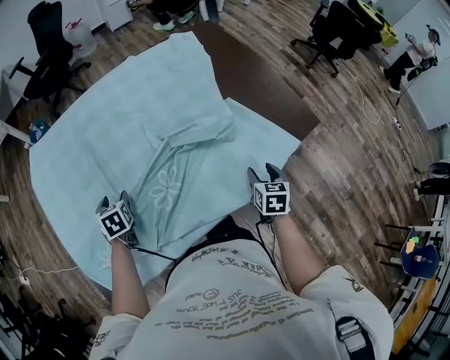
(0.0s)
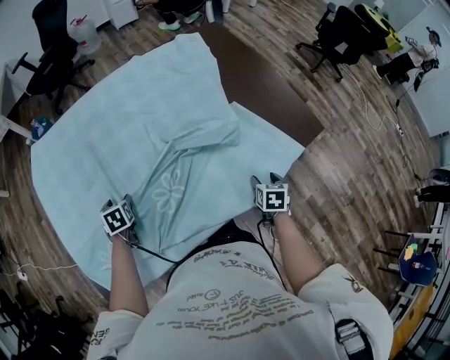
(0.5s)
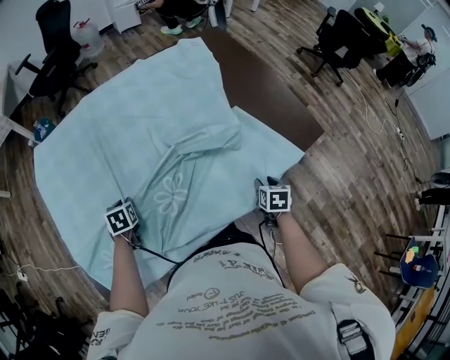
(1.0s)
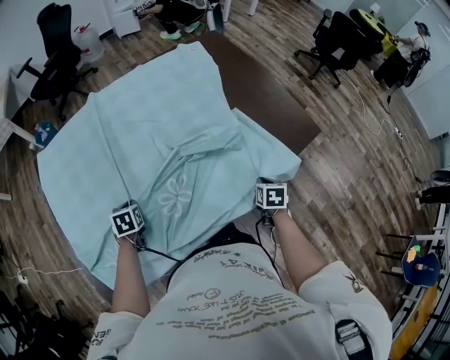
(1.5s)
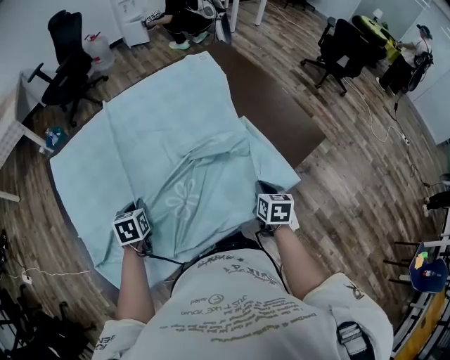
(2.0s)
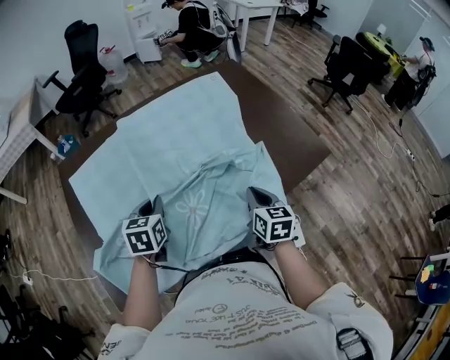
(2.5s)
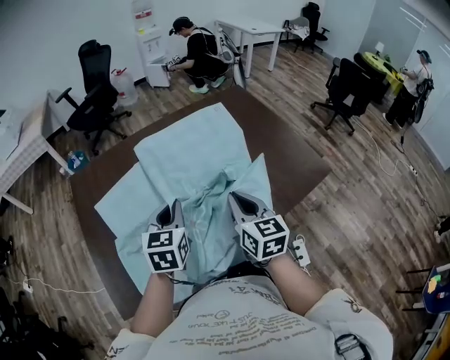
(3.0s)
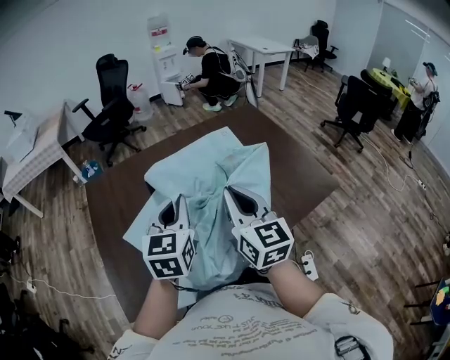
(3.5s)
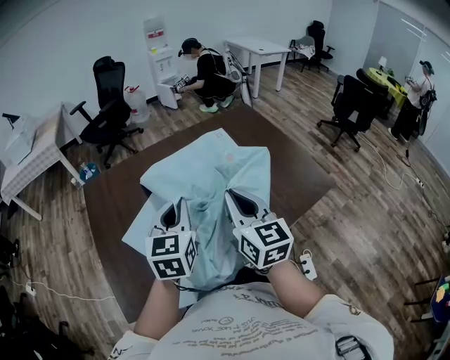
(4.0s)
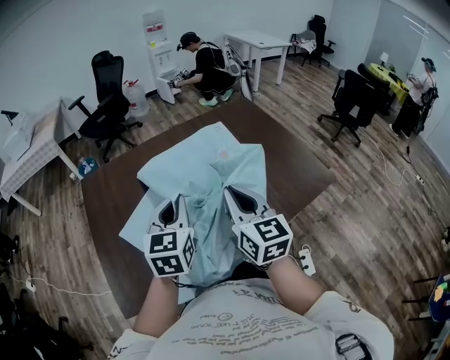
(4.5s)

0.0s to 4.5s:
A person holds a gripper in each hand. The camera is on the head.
0.0s to 2.0s: The left gripper is displaced to the right by about 5 cm, and closes; the right gripper closes its fingers.
2.0s to 4.5s: The right gripper travels upward and to the left by about 35 cm, and tilts its fingers about 40 degrees upward; the left gripper is displaced upward by about 25 cm, and angles its fingers upward, by roughly 40 degrees.

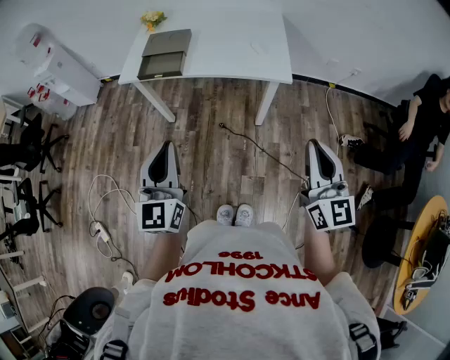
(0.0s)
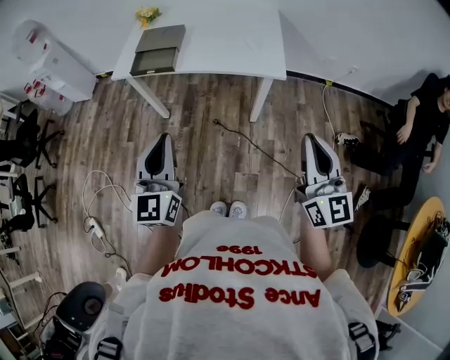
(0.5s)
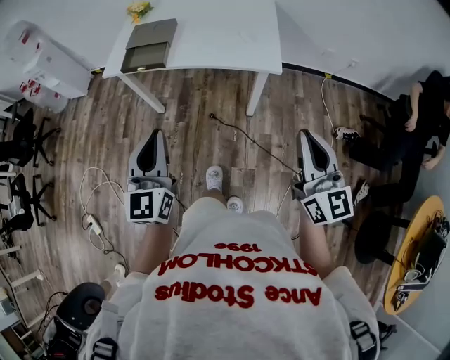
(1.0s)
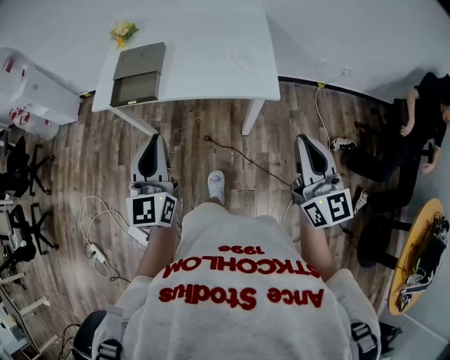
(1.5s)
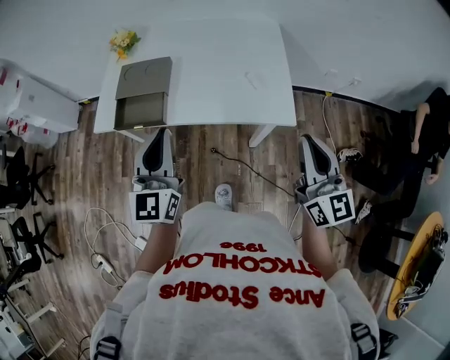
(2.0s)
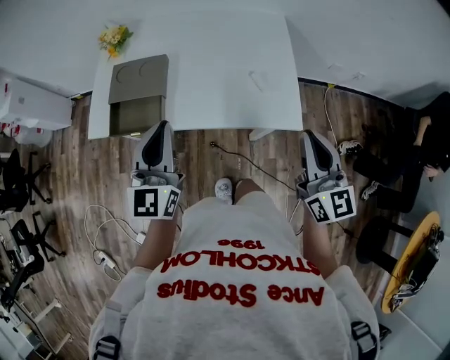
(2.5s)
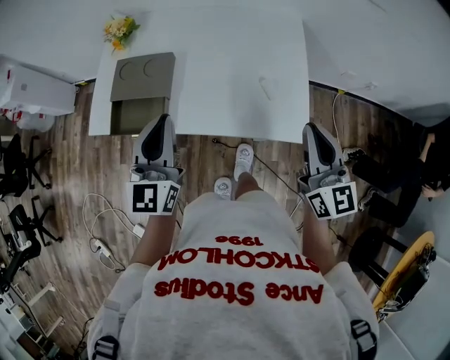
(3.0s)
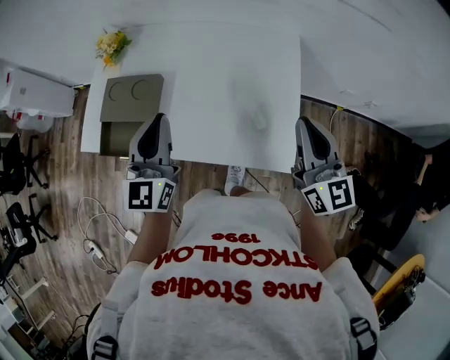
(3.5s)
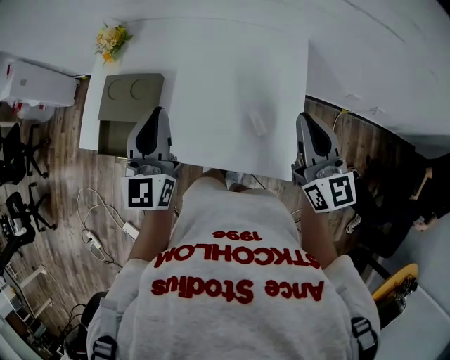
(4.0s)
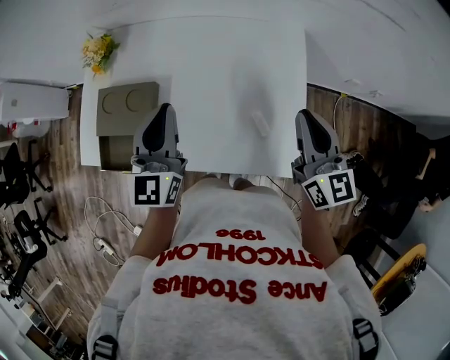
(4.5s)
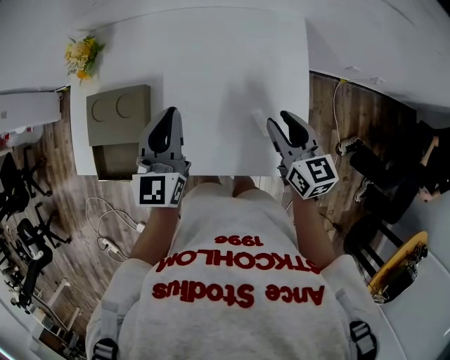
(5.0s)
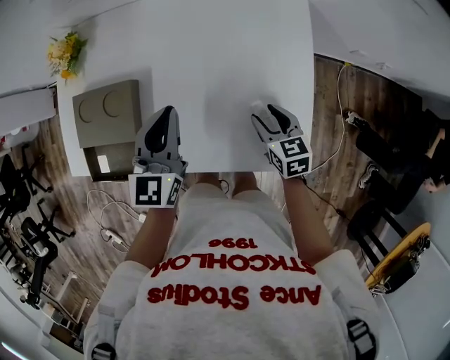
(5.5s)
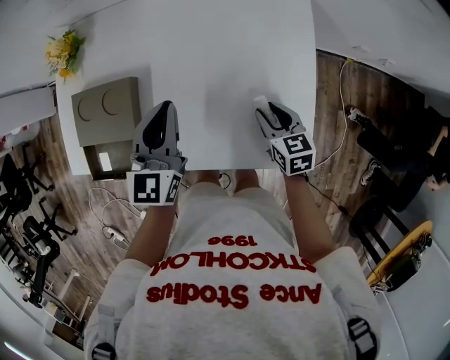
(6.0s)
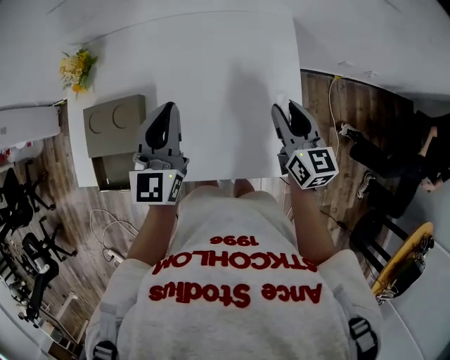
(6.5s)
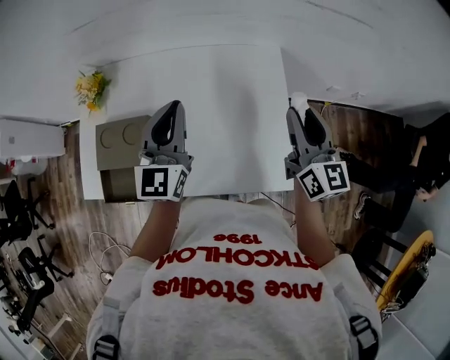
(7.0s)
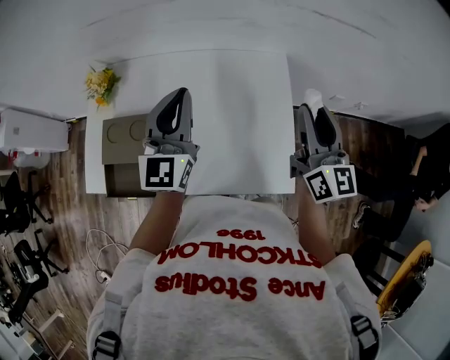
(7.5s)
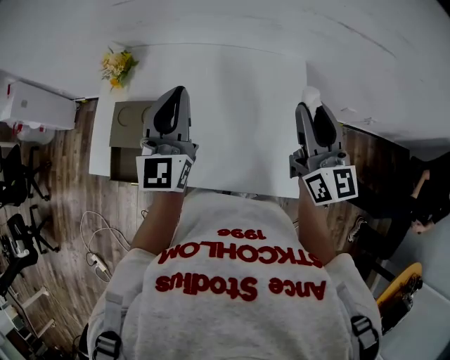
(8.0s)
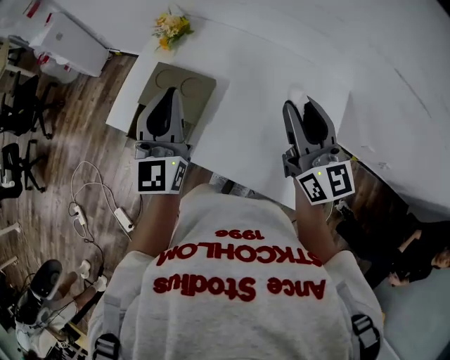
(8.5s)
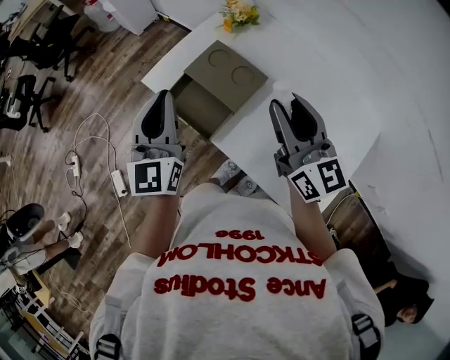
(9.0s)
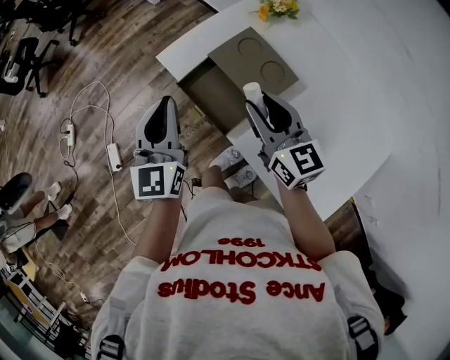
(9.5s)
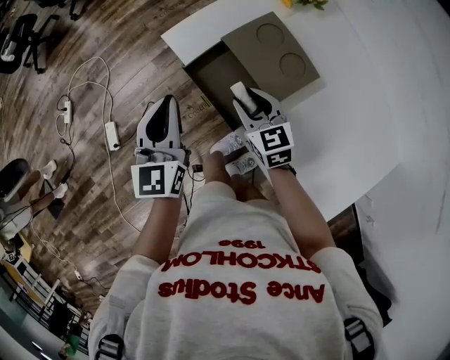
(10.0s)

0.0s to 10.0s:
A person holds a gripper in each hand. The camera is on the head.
0.0s to 2.0s: Both grippers travel together forward, some 25 cm.
2.0s to 4.0s: Both grippers travel together forward, about 25 cm.
4.0s to 6.0s: The left gripper shifts roughly 10 cm downward and forward. The right gripper travels downward by some 25 cm, tilts its fingers some 40 degrees downward, and opens.
6.0s to 8.0s: The right gripper is displaced upward by about 35 cm, and tips its fingers upward by approximately 50 degrees. Meanwhile the left gripper goes approximately 15 cm upward, and turns by some 20 degrees.
8.0s to 10.0s: The right gripper ends up about 50 cm from where it was, and tilts its fingers about 40 degrees downward; the left gripper moves approximately 40 cm, and swivels roughly 60 degrees.

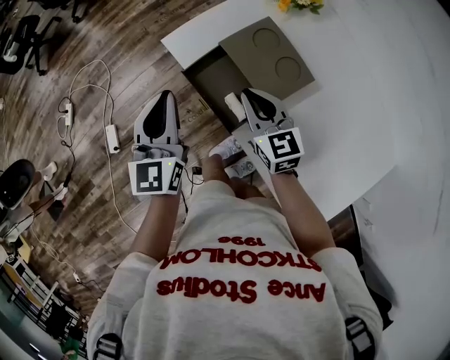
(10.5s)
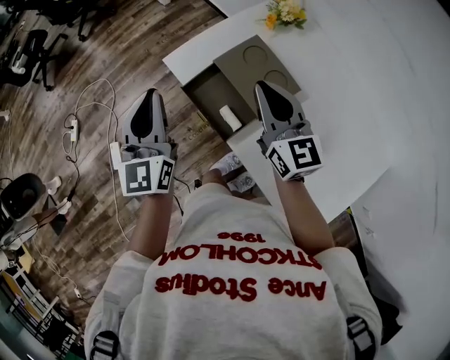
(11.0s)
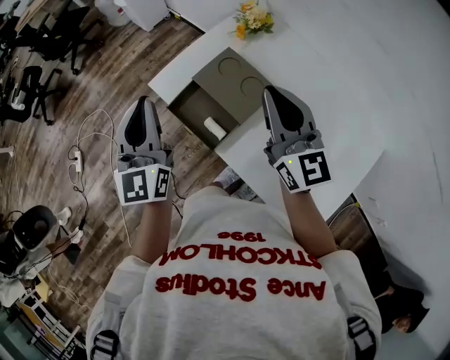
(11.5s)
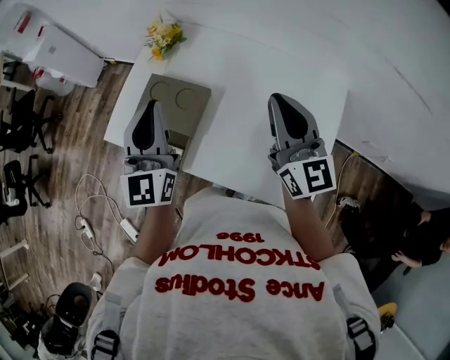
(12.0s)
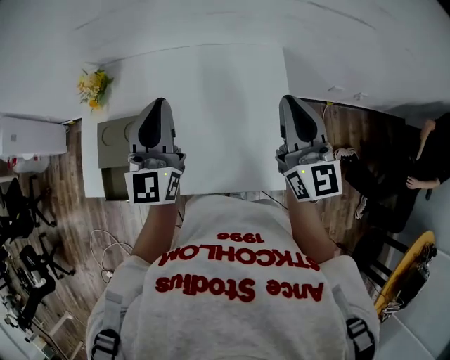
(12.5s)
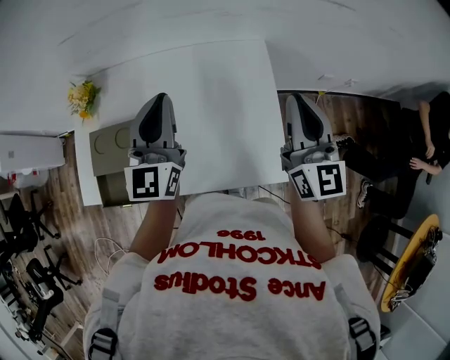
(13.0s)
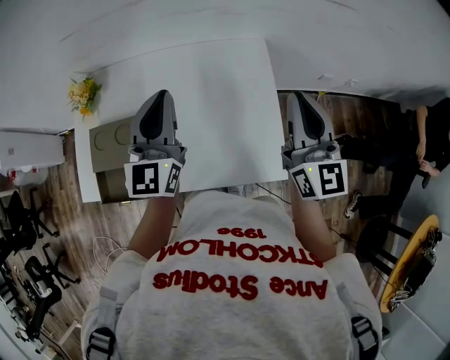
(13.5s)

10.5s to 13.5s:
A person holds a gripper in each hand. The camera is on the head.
10.5s to 12.0s: The left gripper ends up roughly 25 cm from where it was, and swivels approximately 40 degrees. Meanwhile the right gripper shifts by roughly 35 cm, and swivels some 50 degrees.
12.0s to 13.5s: The right gripper changes place by about 25 cm, and rotates roughly 30 degrees. The left gripper shifts by about 25 cm, and turns by approximately 30 degrees.

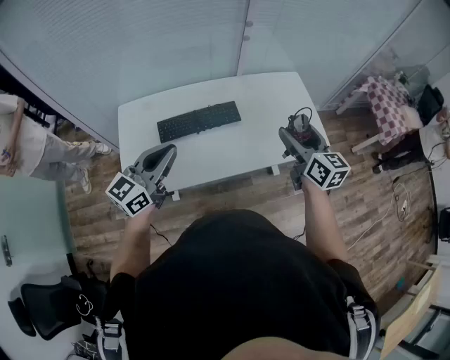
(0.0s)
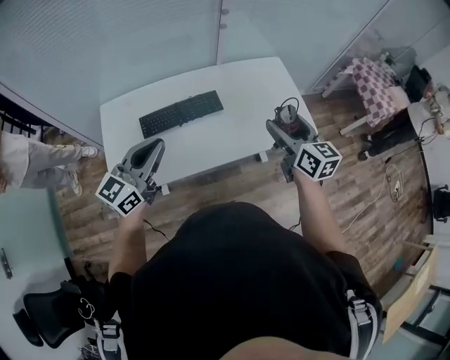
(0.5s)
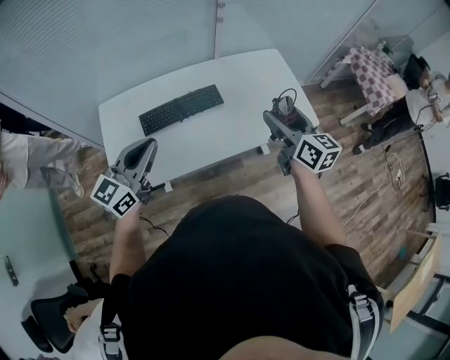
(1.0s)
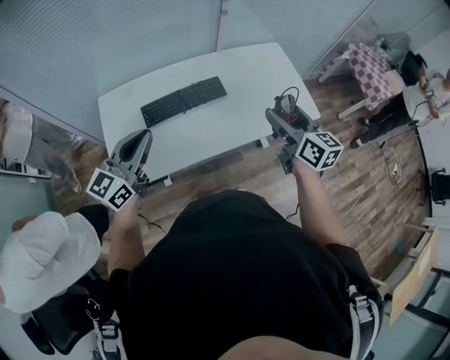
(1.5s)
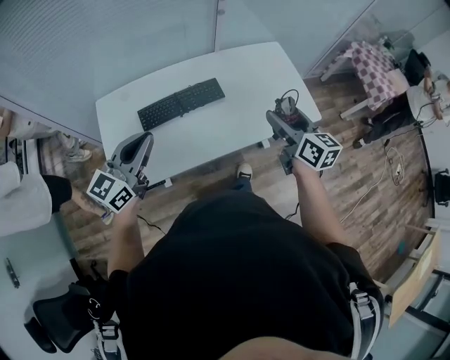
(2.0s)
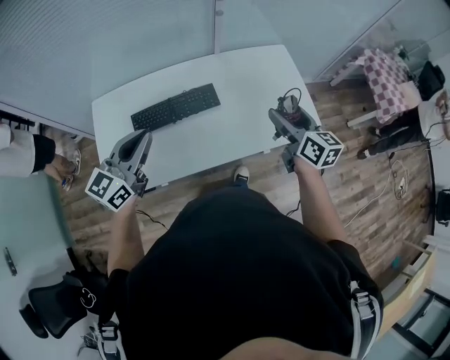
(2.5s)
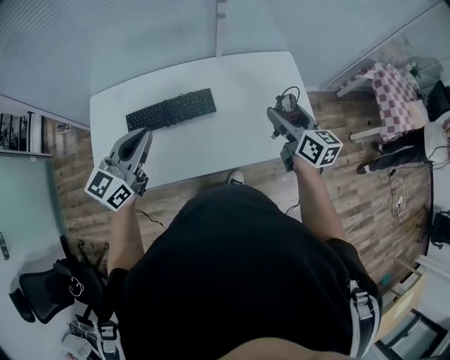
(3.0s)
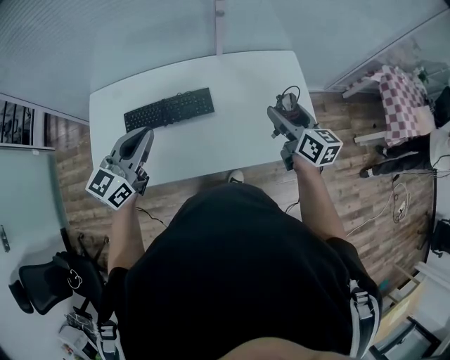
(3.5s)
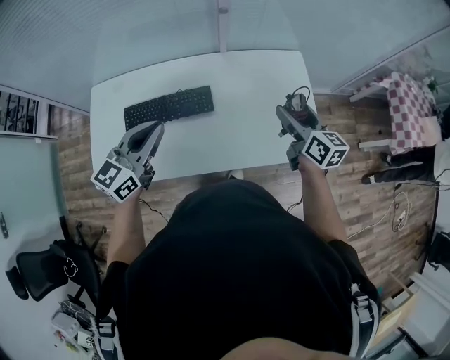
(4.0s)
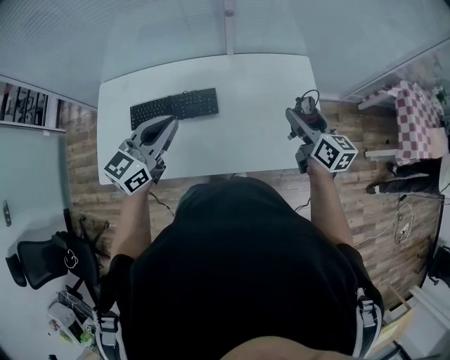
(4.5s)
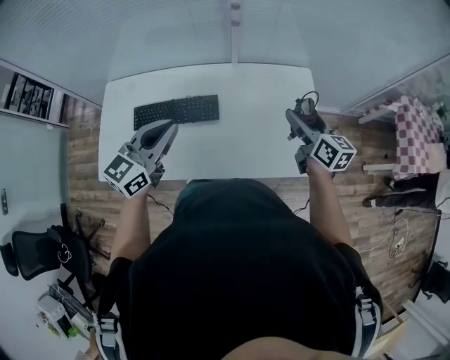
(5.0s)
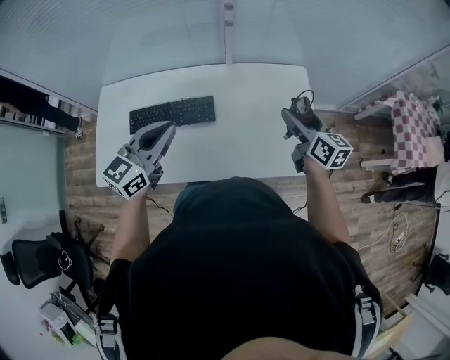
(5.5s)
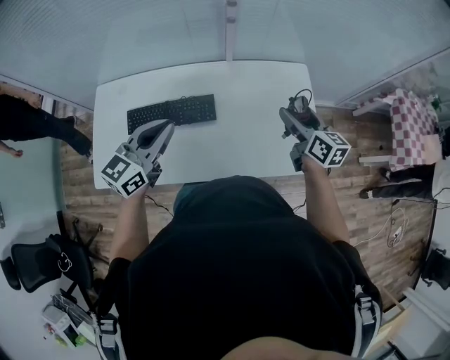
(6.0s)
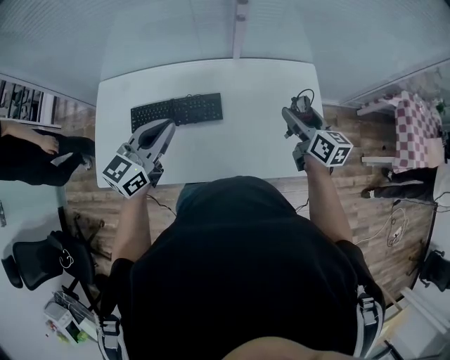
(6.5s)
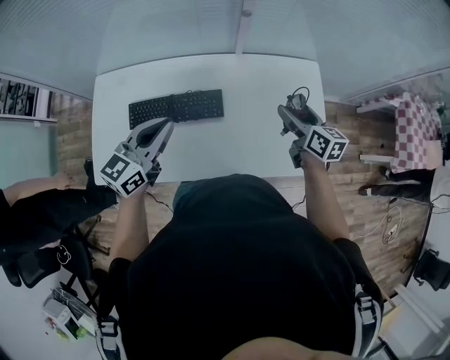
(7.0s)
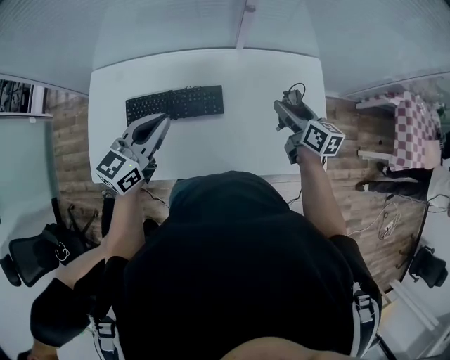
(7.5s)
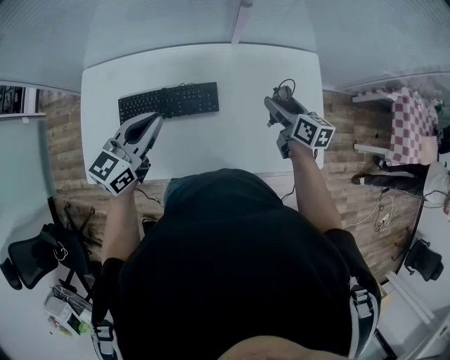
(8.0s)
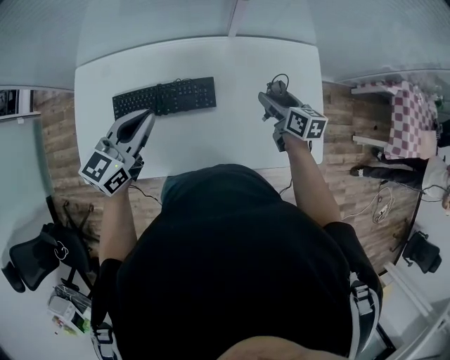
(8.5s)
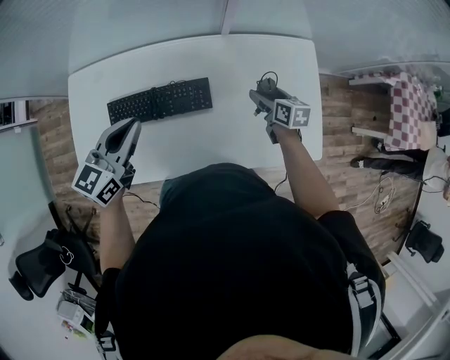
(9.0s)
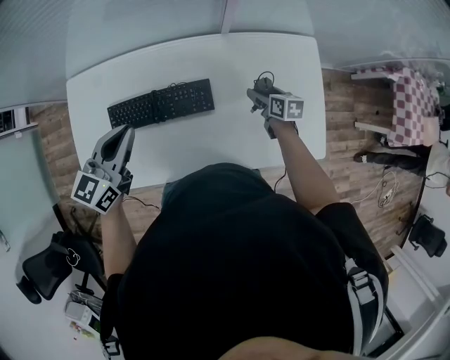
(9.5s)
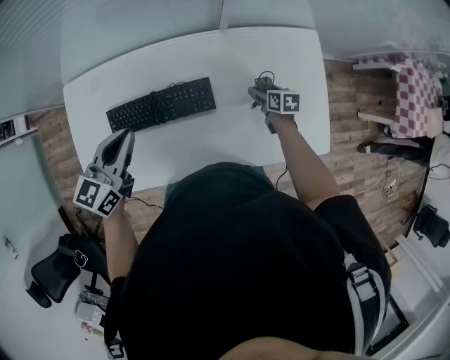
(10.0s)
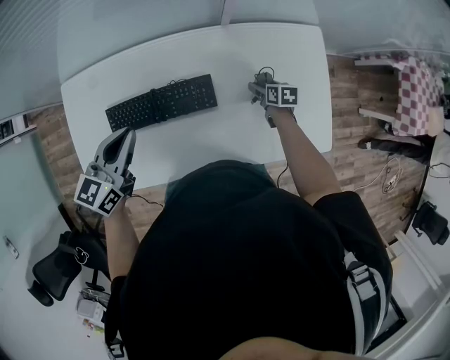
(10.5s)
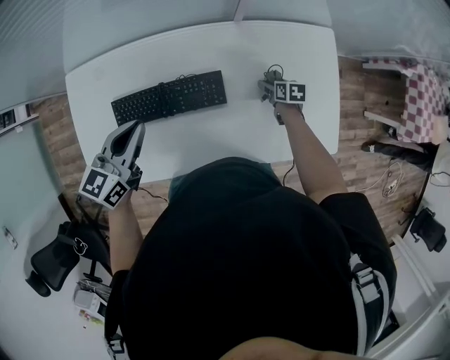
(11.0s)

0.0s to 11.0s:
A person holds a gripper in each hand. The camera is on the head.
0.0s to 2.0s: The grippers stay close to where they were, moving slightly.
2.0s to 3.5s: The left gripper goes about 30 cm to the right and forward. Meanwhile the right gripper shifts approximately 30 cm forward and to the right.
5.5s to 7.5s: The left gripper travels to the left, forward and downward by about 15 cm. Meanwhile the right gripper is displaced to the left, downward and forward by approximately 15 cm.
7.5s to 9.0s: The right gripper goes some 15 cm downward and forward. The left gripper moves forward, roughly 5 cm.
9.0s to 11.0s: The left gripper moves downward, about 5 cm; the right gripper shifts some 15 cm downward, and swivels some 20 degrees.
